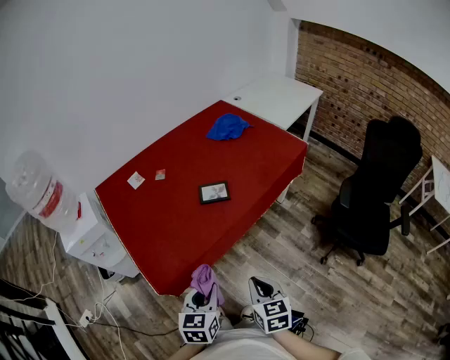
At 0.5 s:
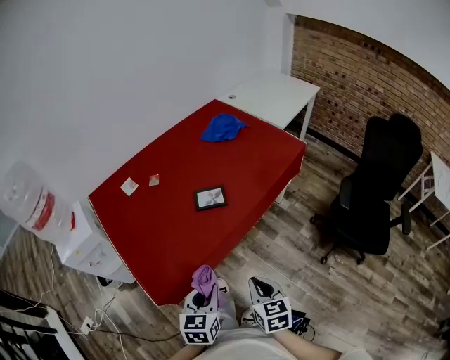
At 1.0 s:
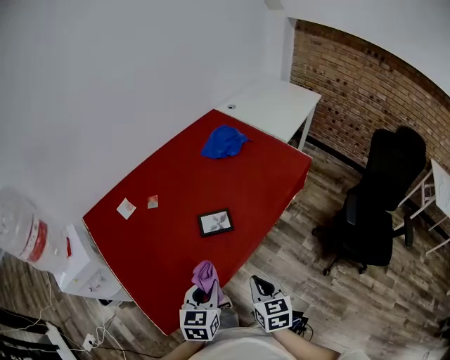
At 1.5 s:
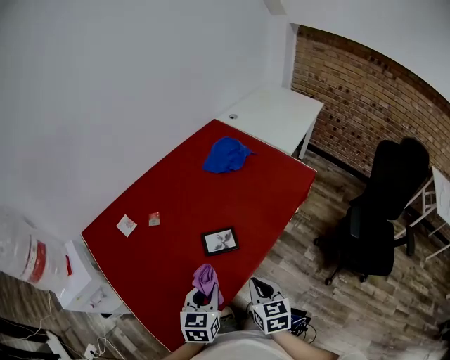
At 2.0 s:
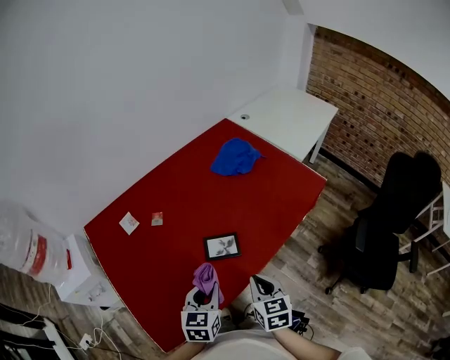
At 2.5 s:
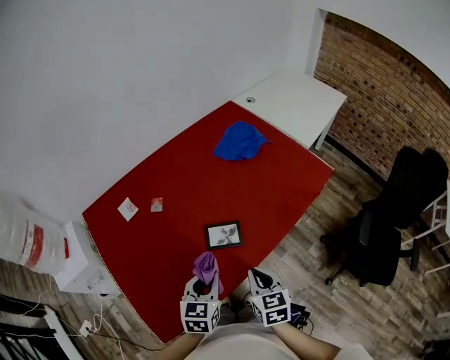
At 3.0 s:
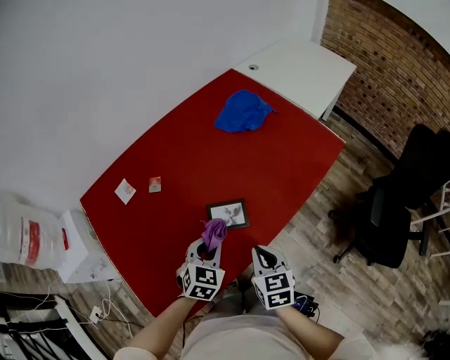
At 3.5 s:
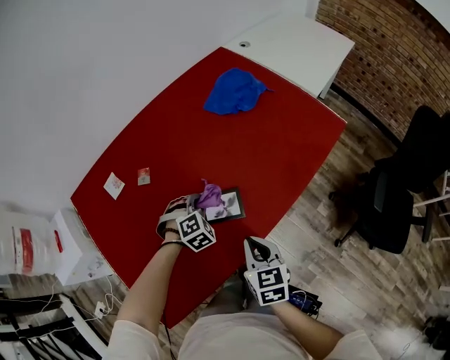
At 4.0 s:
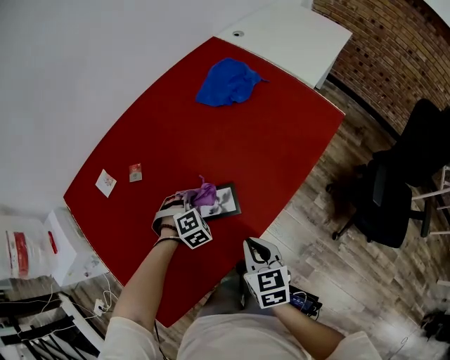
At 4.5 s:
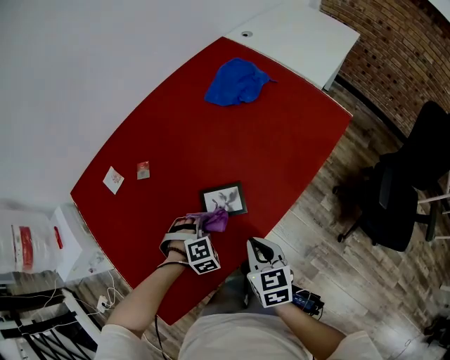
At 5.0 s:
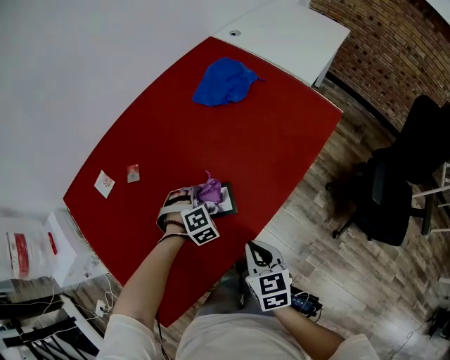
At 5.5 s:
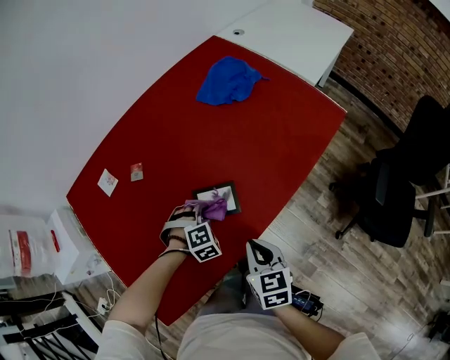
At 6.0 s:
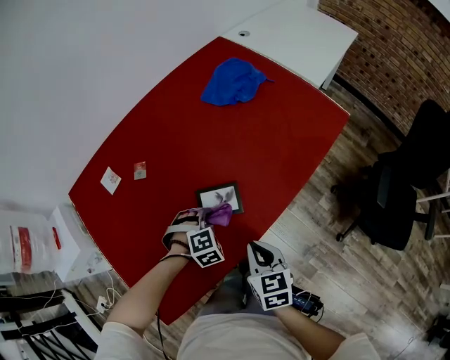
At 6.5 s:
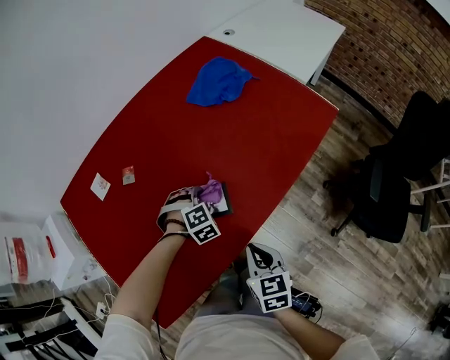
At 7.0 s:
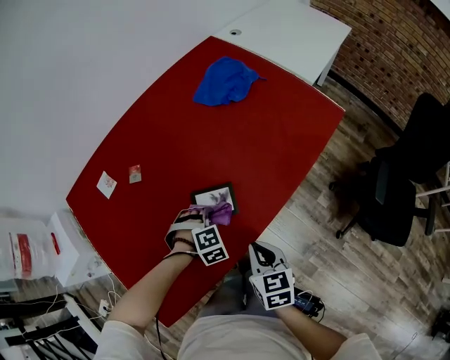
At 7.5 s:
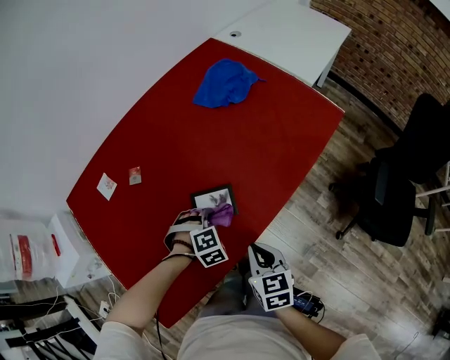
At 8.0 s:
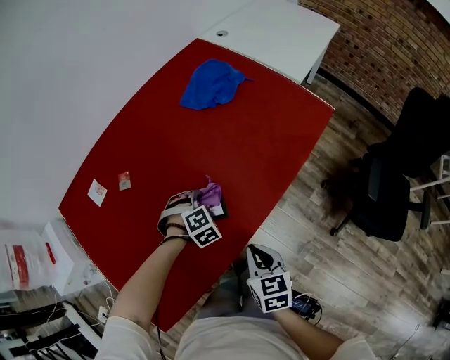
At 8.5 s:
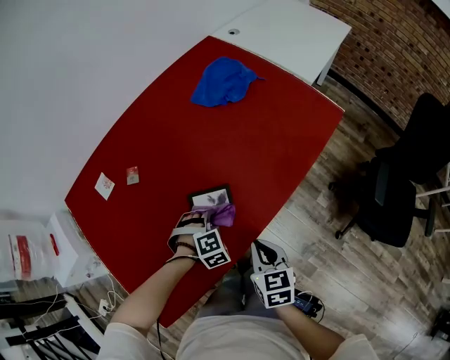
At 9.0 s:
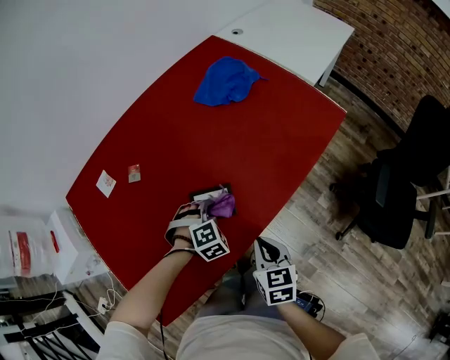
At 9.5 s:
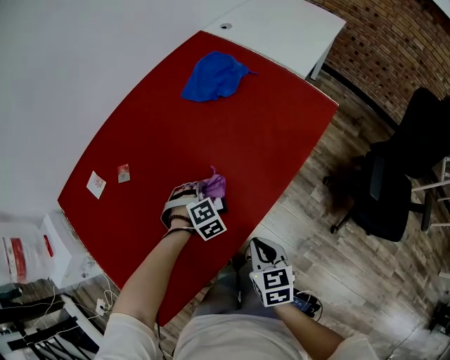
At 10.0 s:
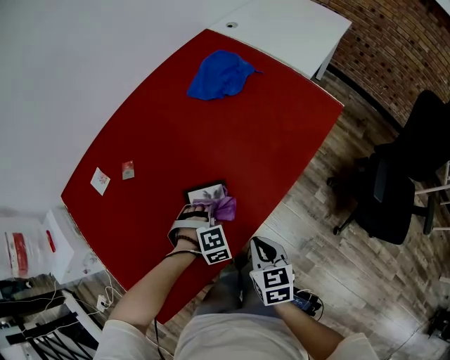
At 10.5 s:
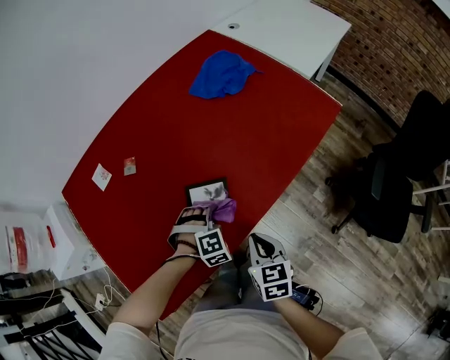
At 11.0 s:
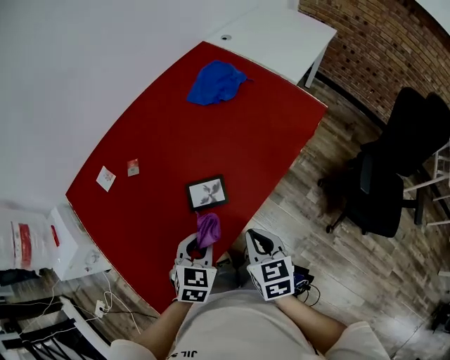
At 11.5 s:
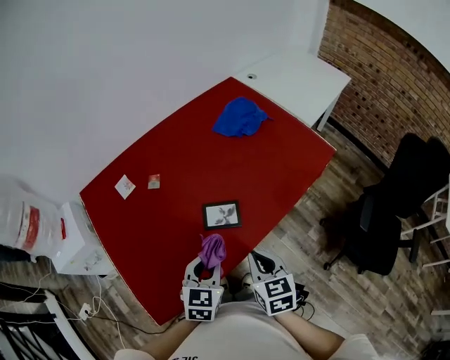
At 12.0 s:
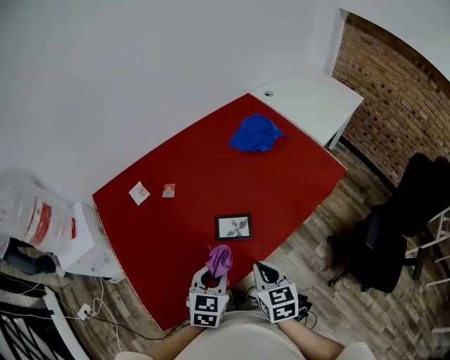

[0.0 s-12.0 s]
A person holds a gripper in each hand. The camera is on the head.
0.0 to 2.0 s: Both grippers travel together forward, about 30 cm.
2.0 to 4.0 s: The left gripper heads downward and forward, covering approximately 30 cm, and twists approximately 70 degrees clockwise, seen from behind. The right gripper is displaced downward by about 10 cm.
4.0 to 6.0 s: The left gripper swings forward and backward, approximately 10 cm each way, with 2 reversals.
6.0 to 8.0 s: The left gripper moves forward and backward over roughly 10 cm, changing direction 2 times.
8.0 to 10.0 s: The left gripper goes forward and backward, approximately 10 cm each way, reversing 2 times.
10.0 to 12.0 s: The left gripper heads upward and backward, covering approximately 25 cm, and rotates around the line of its fingers by roughly 70 degrees, counterclockwise from behind, while the right gripper heads upward and to the left, covering some 15 cm.

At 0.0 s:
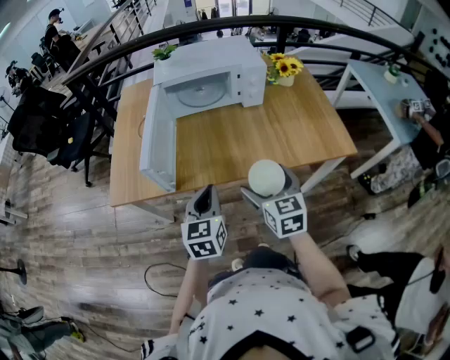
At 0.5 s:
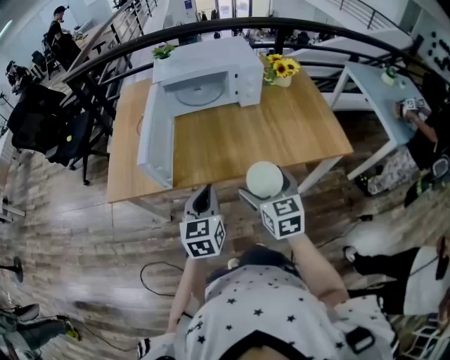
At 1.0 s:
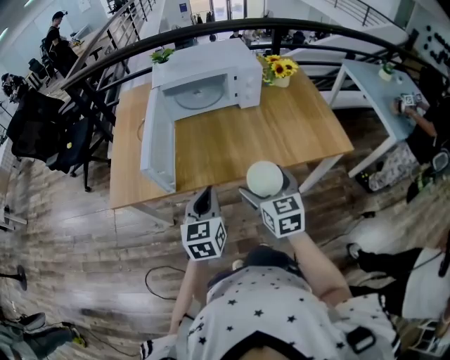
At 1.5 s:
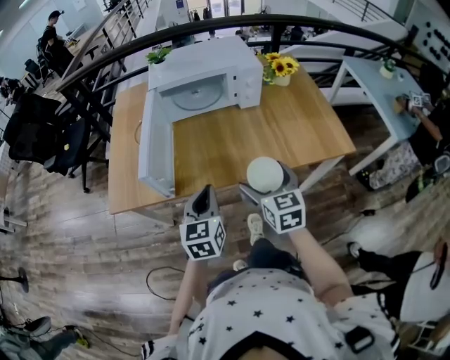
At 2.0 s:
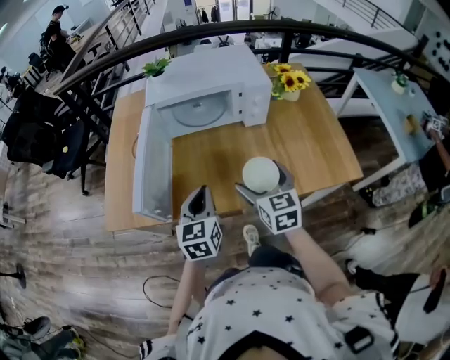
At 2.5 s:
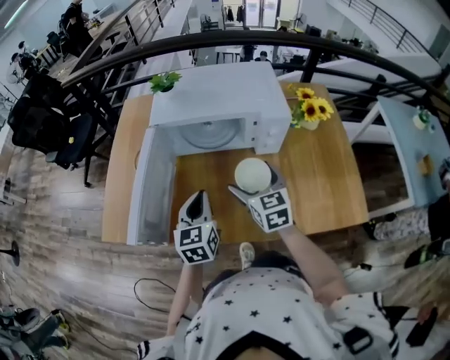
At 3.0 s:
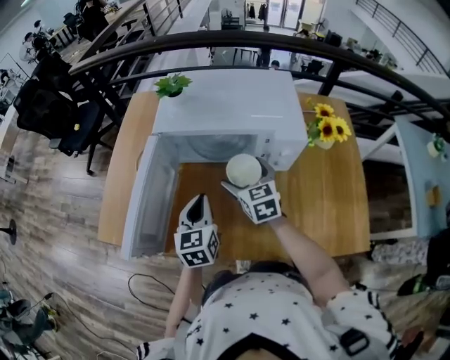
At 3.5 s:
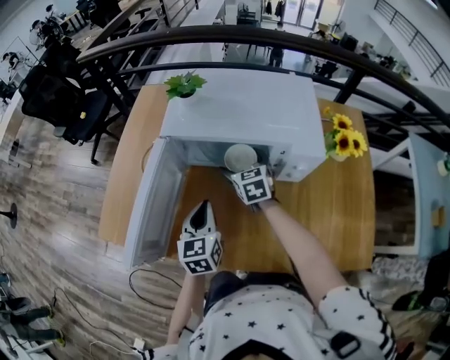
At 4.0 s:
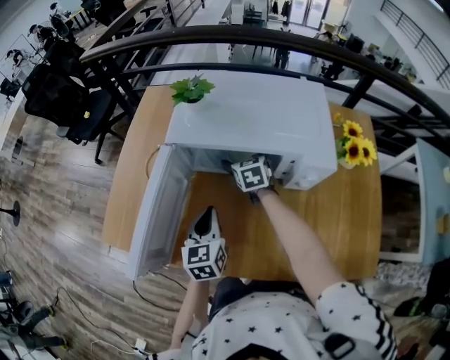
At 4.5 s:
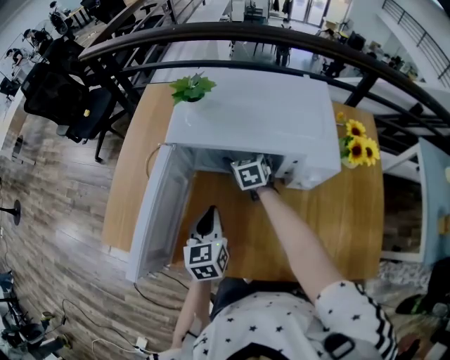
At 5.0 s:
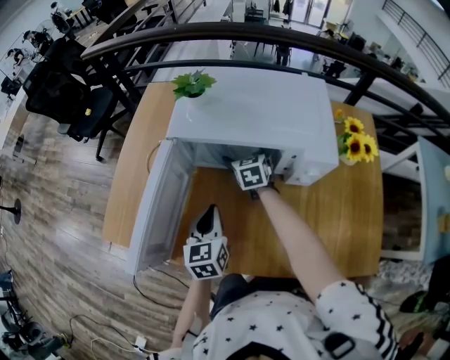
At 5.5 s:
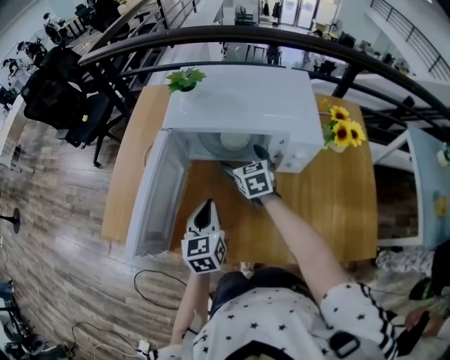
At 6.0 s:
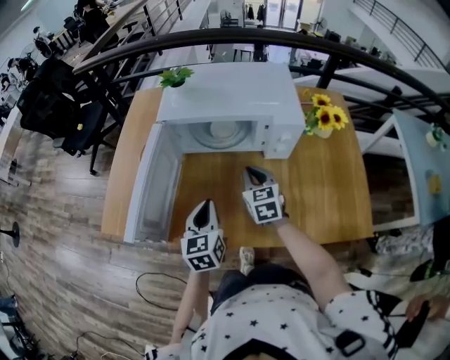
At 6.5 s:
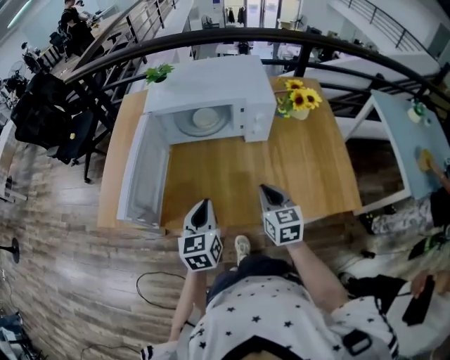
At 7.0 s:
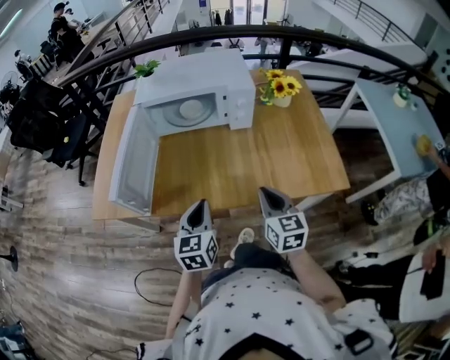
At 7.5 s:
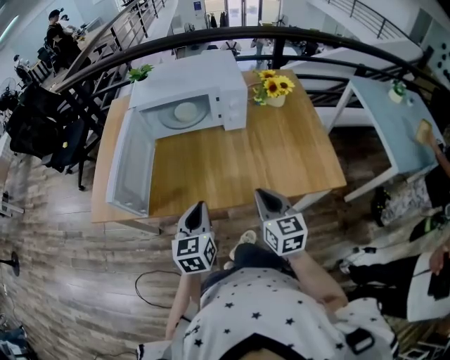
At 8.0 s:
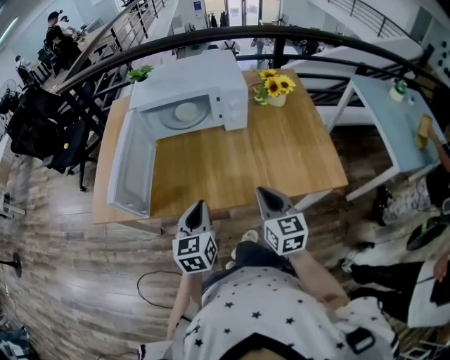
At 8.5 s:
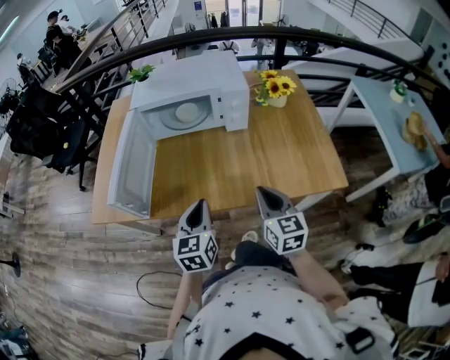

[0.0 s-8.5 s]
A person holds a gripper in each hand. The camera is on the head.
0.0 to 2.0 s: Both grippers move forward, some 15 cm.
2.0 to 4.0 s: The right gripper is displaced forward by approximately 40 cm, and swivels approximately 20 degrees. Meanwhile the left gripper goes some 20 cm forward.
4.0 to 6.5 s: The right gripper heads backward, covering approximately 35 cm, rotates some 20 degrees, and closes its fingers; the left gripper moves backward, approximately 20 cm.
6.5 to 8.5 s: The grippers both shift backward by approximately 10 cm.

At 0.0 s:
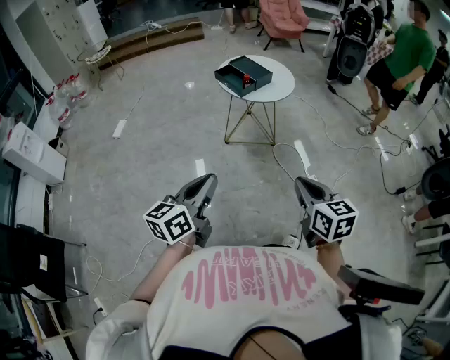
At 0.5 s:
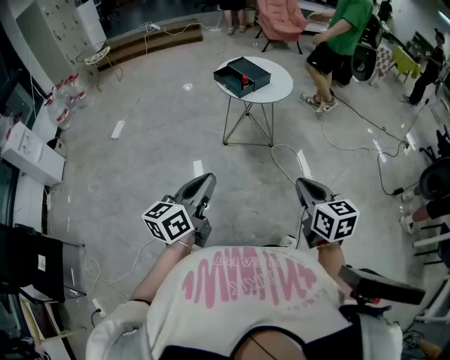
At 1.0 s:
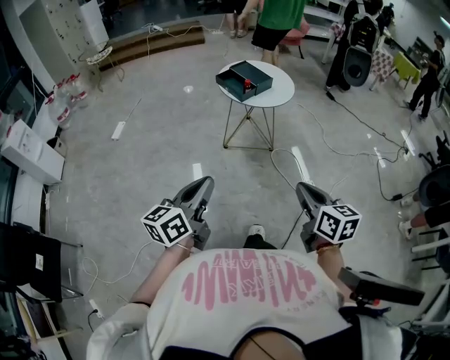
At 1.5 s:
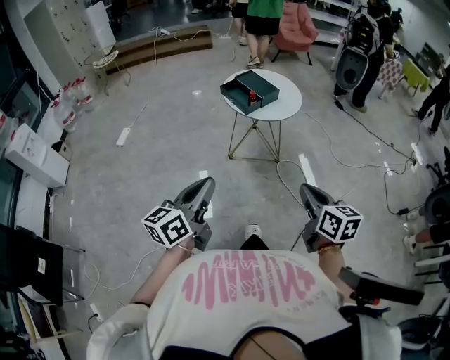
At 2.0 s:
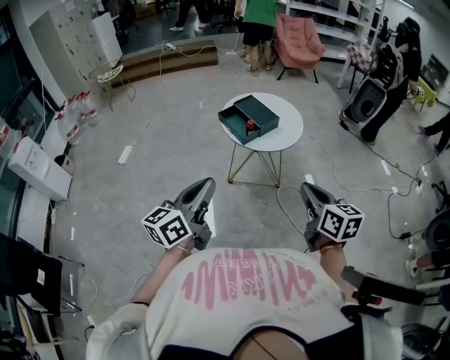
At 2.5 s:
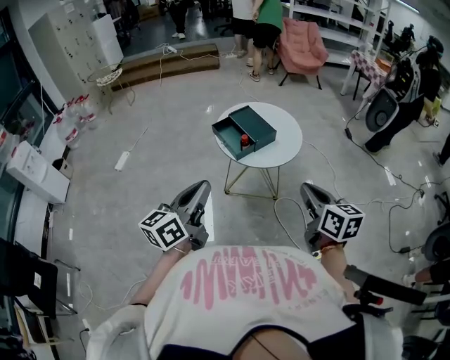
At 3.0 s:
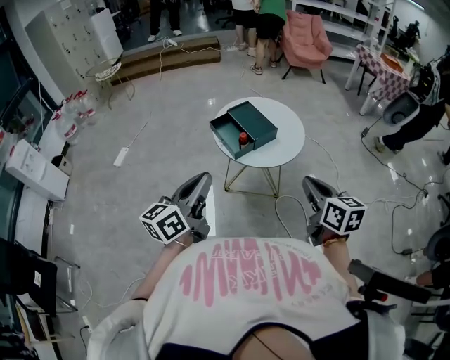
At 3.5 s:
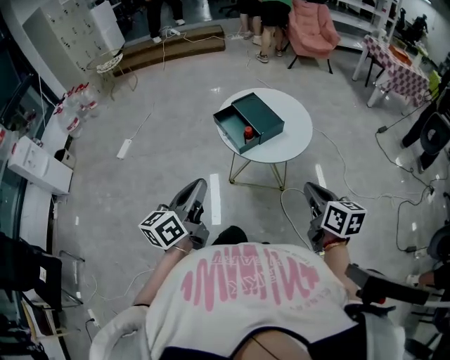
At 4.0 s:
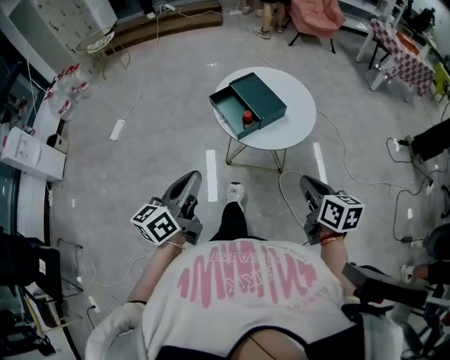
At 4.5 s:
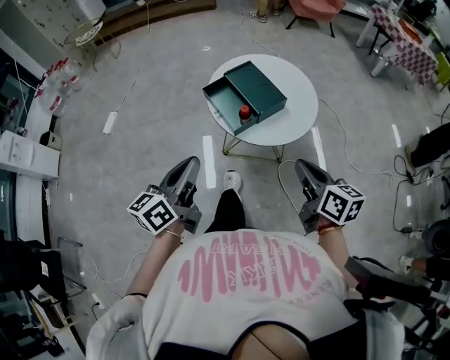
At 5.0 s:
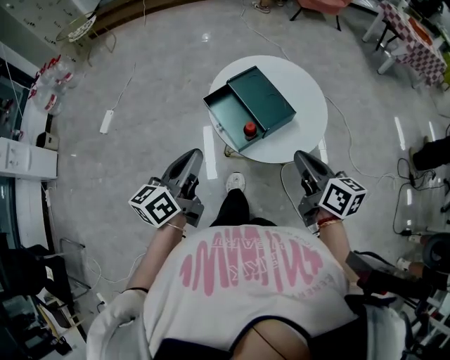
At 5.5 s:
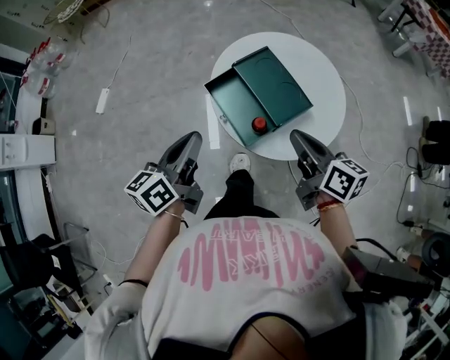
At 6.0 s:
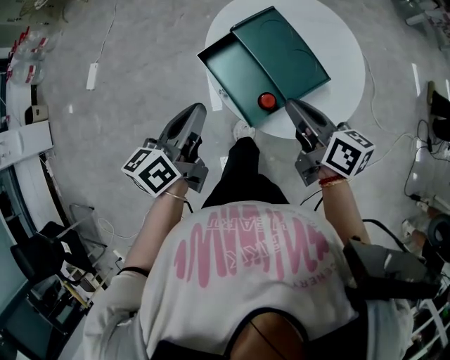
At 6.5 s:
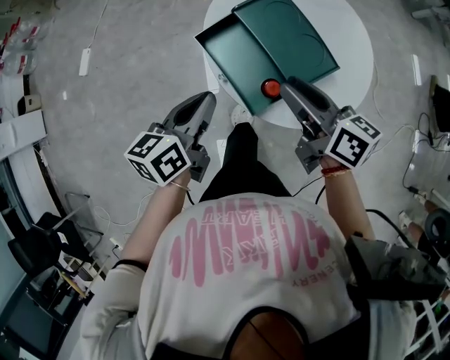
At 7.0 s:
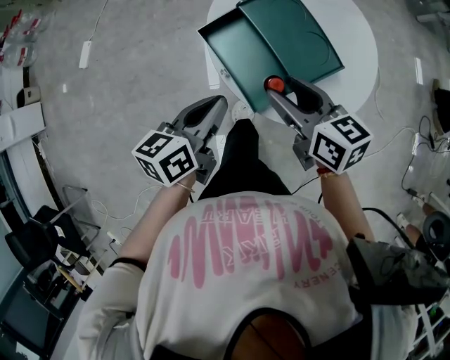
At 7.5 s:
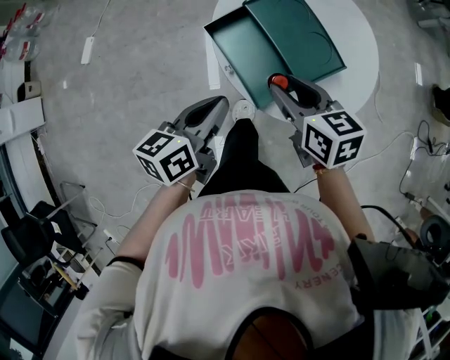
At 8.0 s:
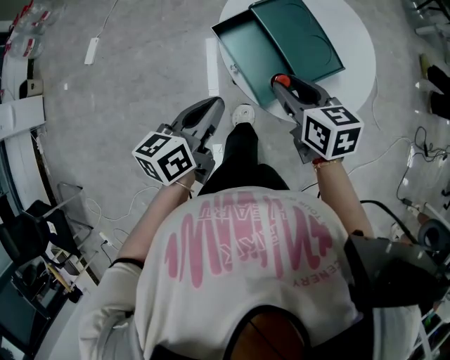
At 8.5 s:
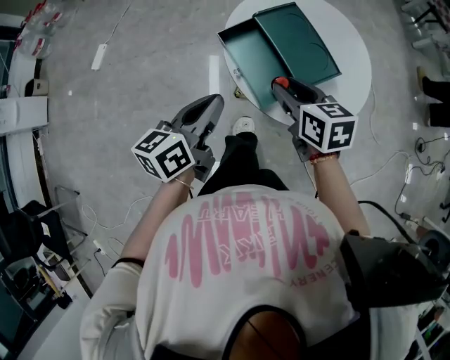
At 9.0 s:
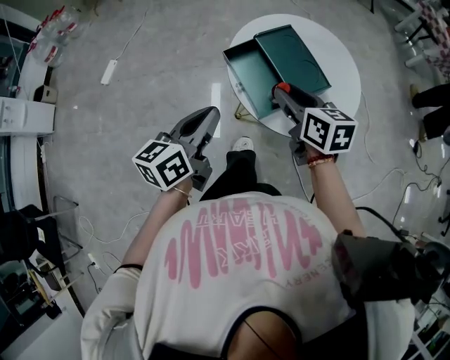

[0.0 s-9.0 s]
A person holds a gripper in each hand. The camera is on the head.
0.0 to 2.0 s: Both grippers travel together forward, about 20 cm.
2.0 to 4.5 s: Both grippers move forward and downward, approximately 30 cm.
4.5 to 7.0 s: The left gripper shifts roughly 25 cm forward and downward, and swivels approximately 20 degrees. Meanwhile the right gripper is displaced forward, downward and to the left by some 30 cm, and opens.
7.0 to 9.0 s: The left gripper heads upward and to the left, covering approximately 10 cm.
